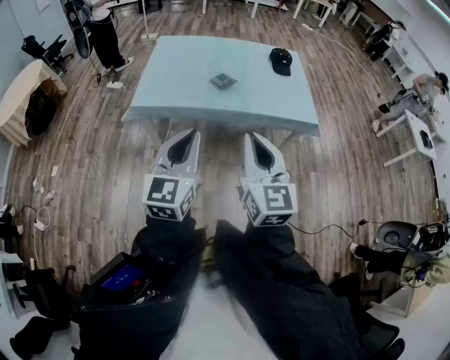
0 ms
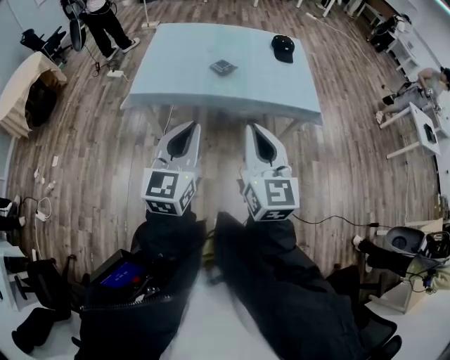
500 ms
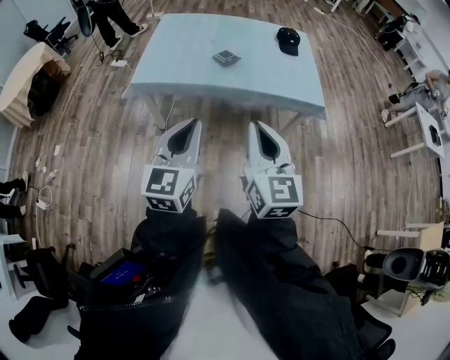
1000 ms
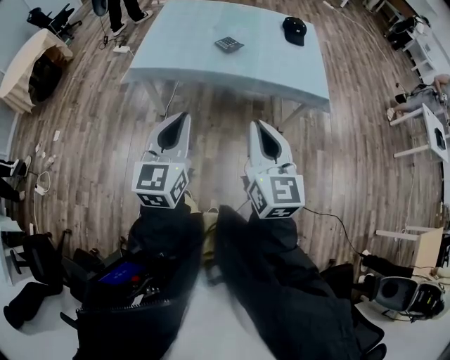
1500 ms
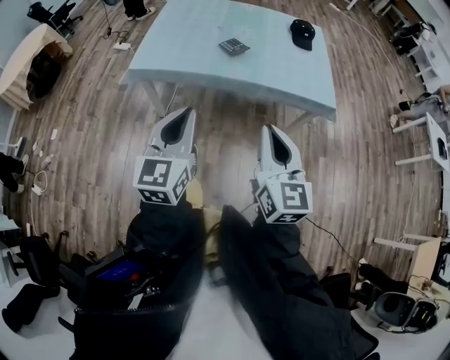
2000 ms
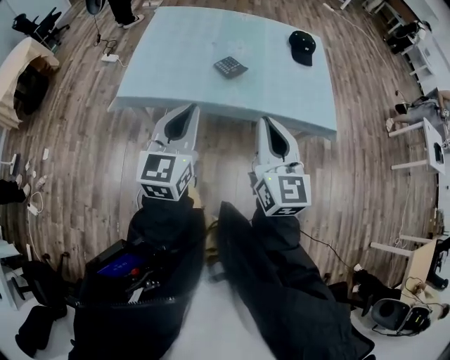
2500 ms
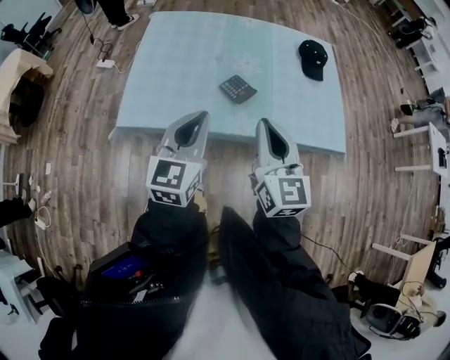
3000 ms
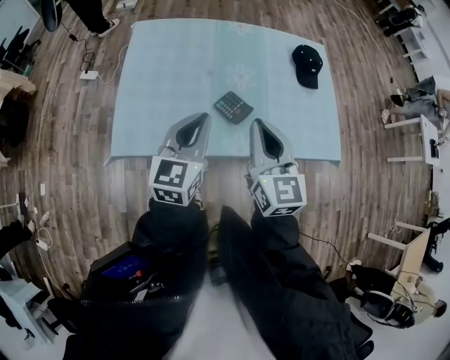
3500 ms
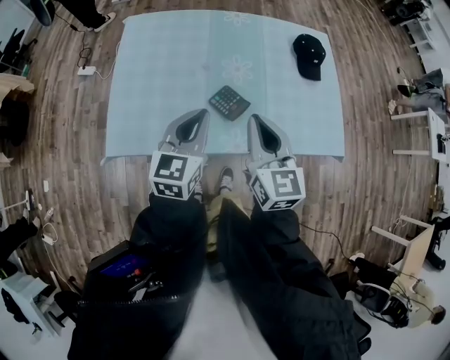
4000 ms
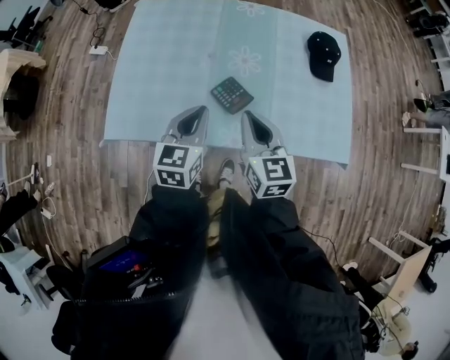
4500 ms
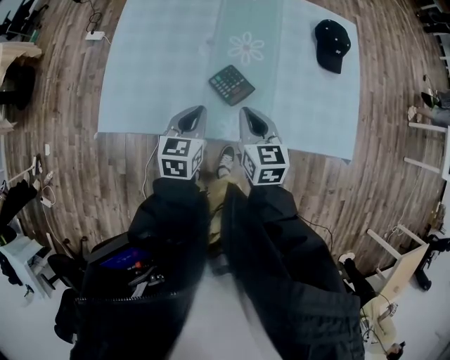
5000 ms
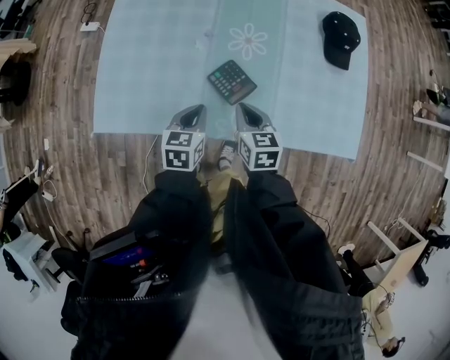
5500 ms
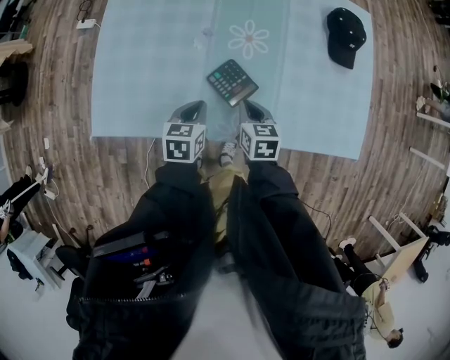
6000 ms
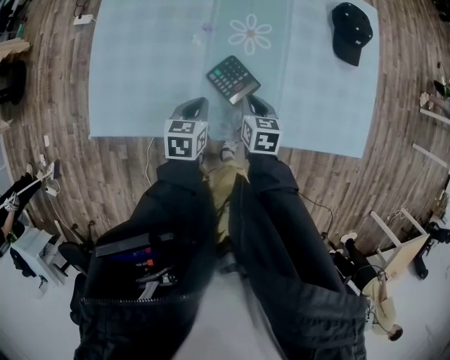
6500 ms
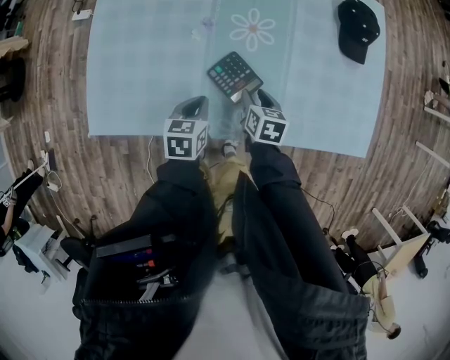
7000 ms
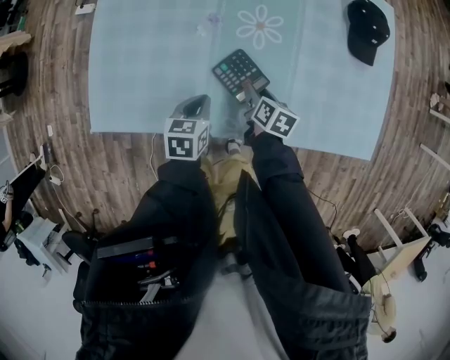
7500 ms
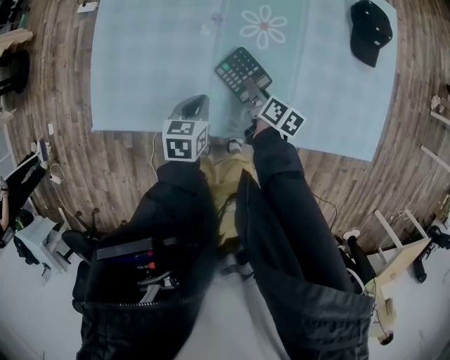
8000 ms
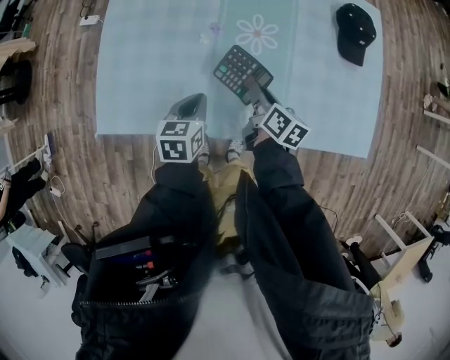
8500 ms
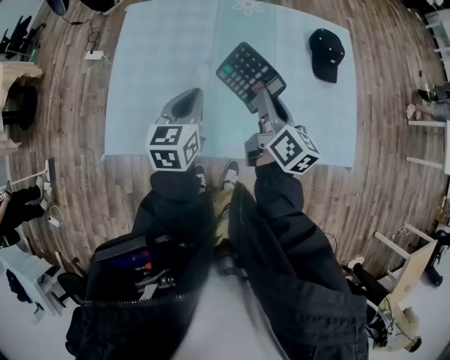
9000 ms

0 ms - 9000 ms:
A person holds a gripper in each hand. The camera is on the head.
0 ms - 2000 ms: The left gripper is displaced downward by roughly 5 cm; the right gripper heads downward and to the right, covering roughly 10 cm.
2000 ms - 4500 ms: The two grippers travel together, forward, some 50 cm. The left gripper changes its angle by roughly 20 degrees.
4500 ms - 7000 ms: Both grippers move downward, about 25 cm. The left gripper turns by approximately 30 degrees. The right gripper angles its fingers downward, by about 30 degrees, and opens up.
7000 ms - 9000 ms: The grippers both shift upward by roughly 25 cm. The right gripper tips its fingers upward by approximately 40 degrees, and closes, while the left gripper rotates approximately 30 degrees.

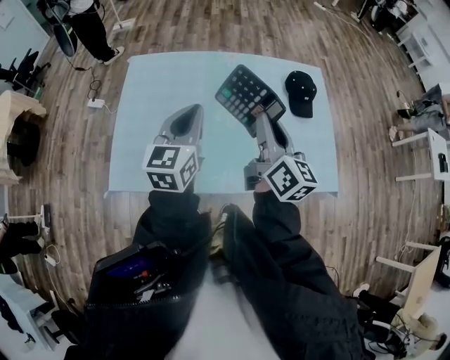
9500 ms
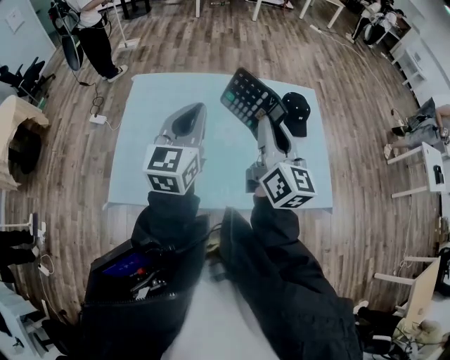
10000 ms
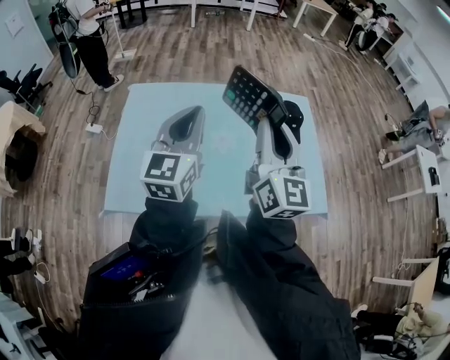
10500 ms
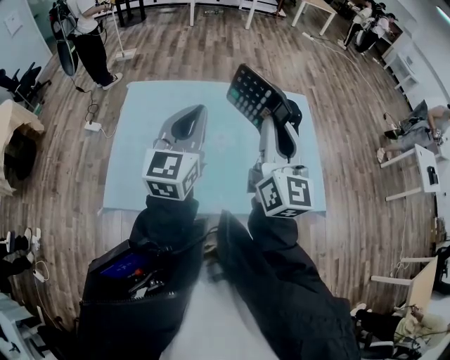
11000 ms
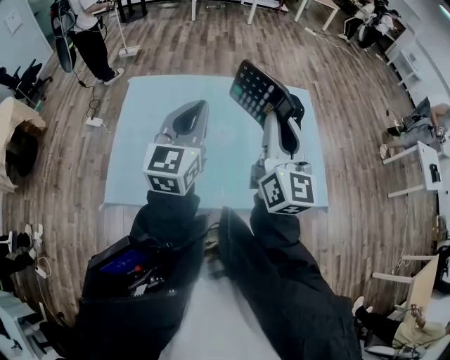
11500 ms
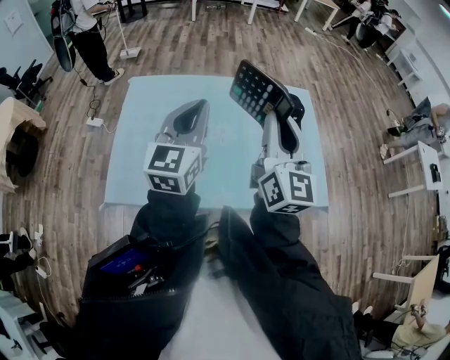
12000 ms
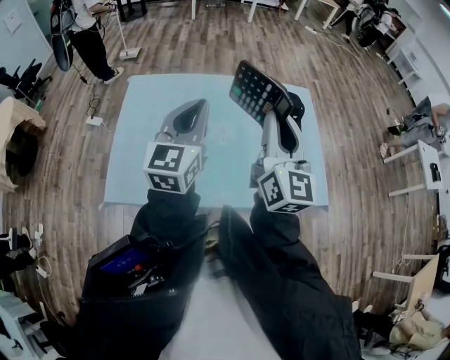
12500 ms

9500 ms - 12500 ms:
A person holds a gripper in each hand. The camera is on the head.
9500 ms - 11000 ms: Both grippers travel together upward, some 10 cm. The right gripper changes its angle by approximately 30 degrees.
11000 ms - 12500 ms: Both grippers stay put.

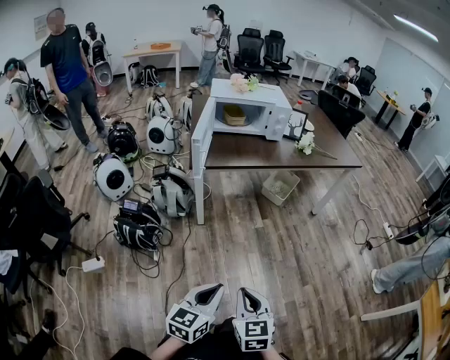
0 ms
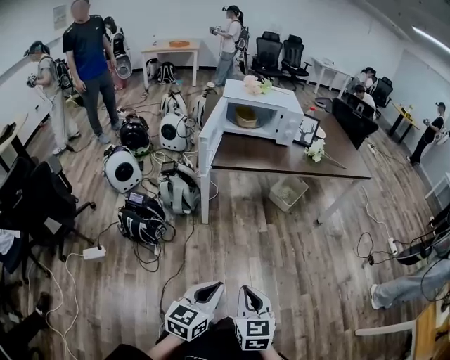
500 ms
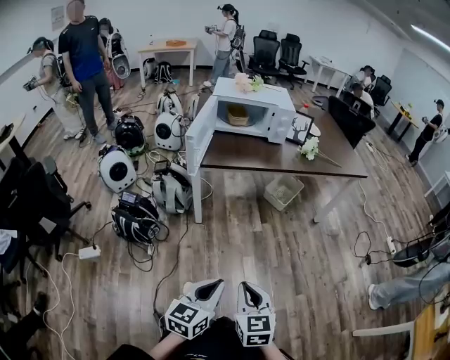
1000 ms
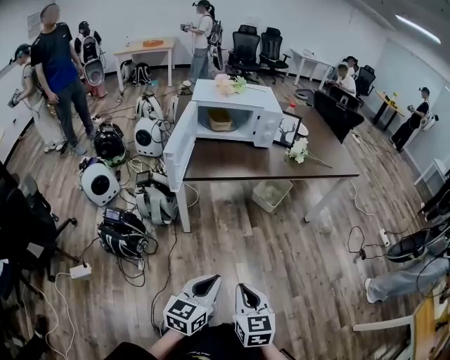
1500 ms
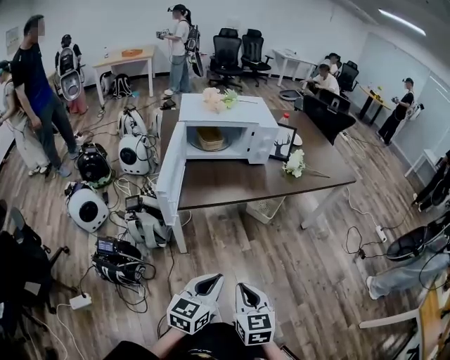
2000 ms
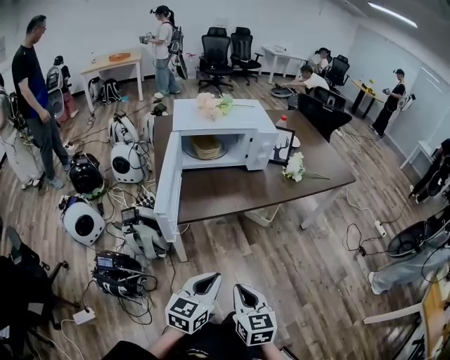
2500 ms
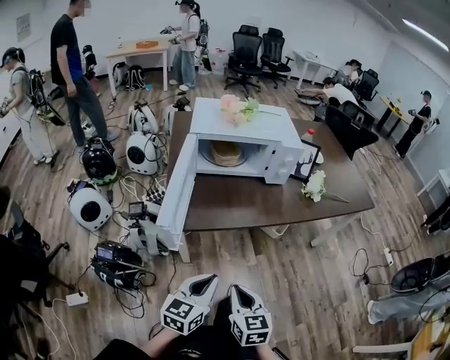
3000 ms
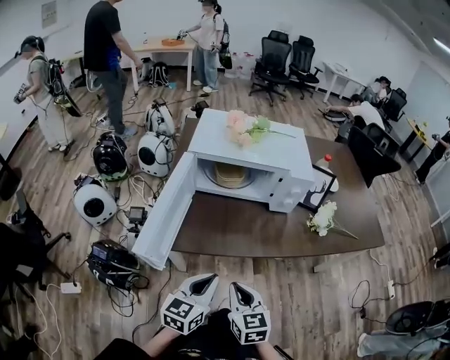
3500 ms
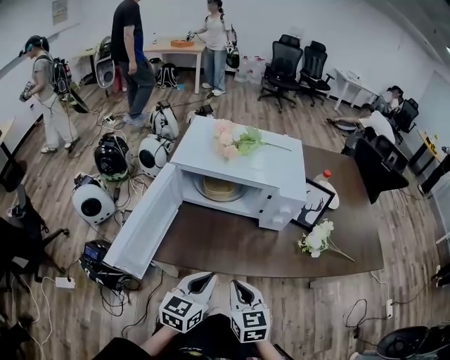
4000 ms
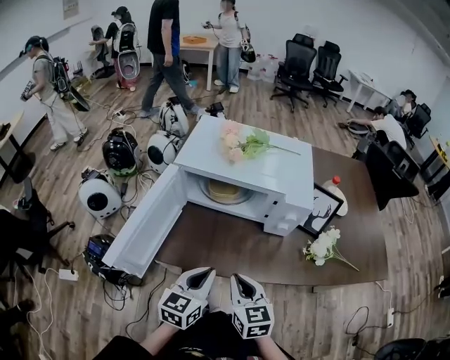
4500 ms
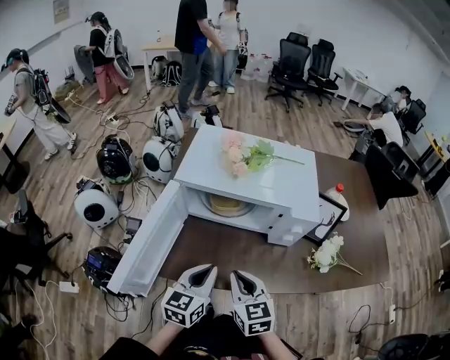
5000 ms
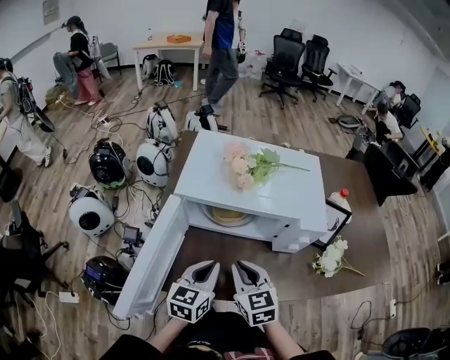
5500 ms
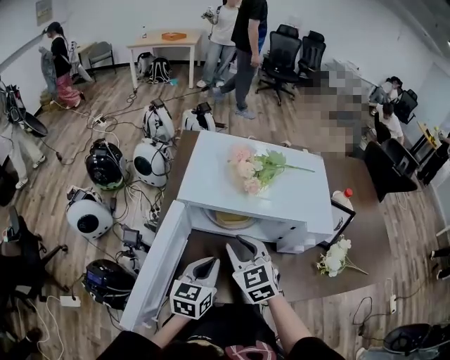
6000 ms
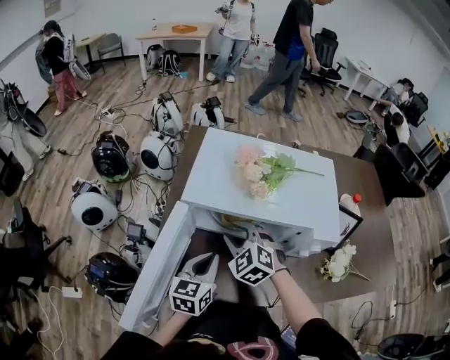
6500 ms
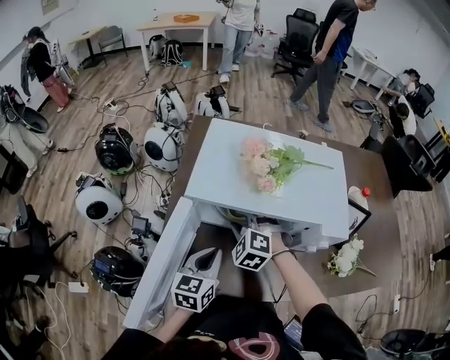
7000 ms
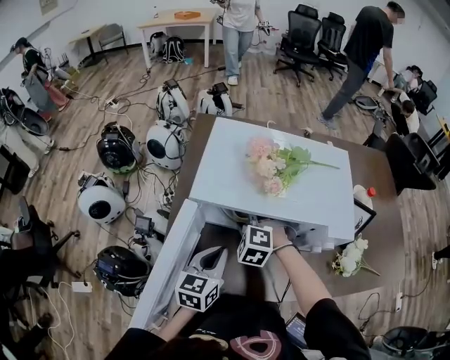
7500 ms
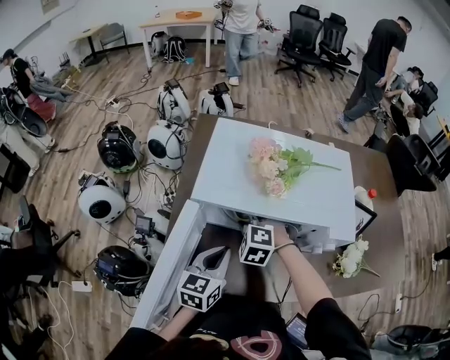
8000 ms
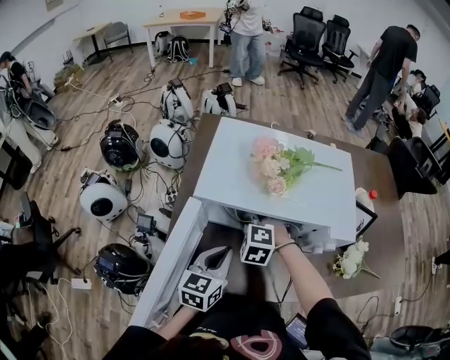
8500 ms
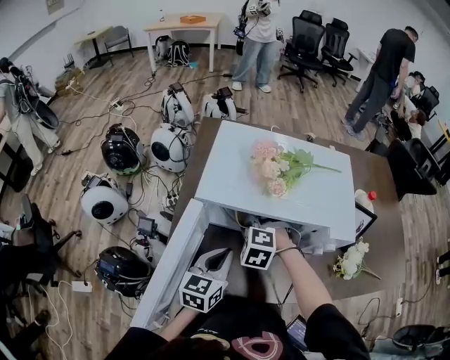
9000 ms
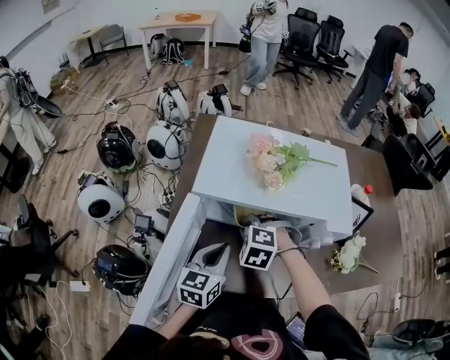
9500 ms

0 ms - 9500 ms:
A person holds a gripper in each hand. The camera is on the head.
0 ms - 2000 ms: Both grippers move forward, some 25 cm.
2000 ms - 4000 ms: The grippers both shift forward by roughly 35 cm. The right gripper turns by roughly 20 degrees.
4000 ms - 5500 ms: The two grippers go roughly 15 cm forward.
5500 ms - 7500 ms: The right gripper travels forward and downward by roughly 15 cm, twists about 60 degrees counterclockwise, seen from behind, and opens its fingers. Meanwhile the left gripper heads forward, covering approximately 5 cm.
7500 ms - 9500 ms: The right gripper closes.

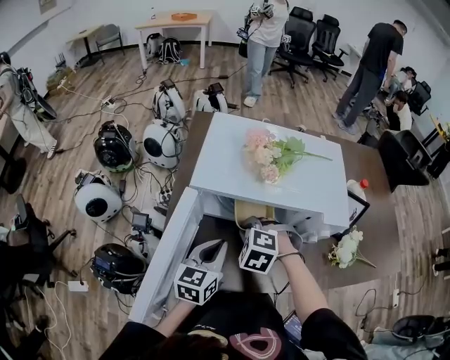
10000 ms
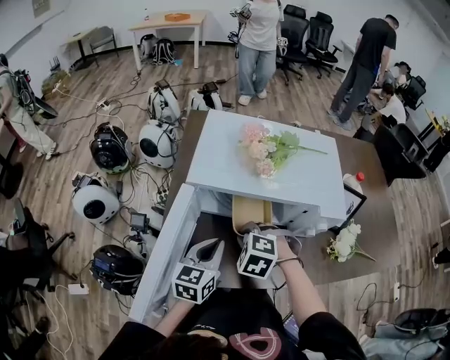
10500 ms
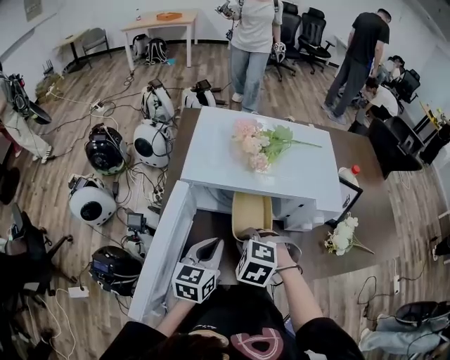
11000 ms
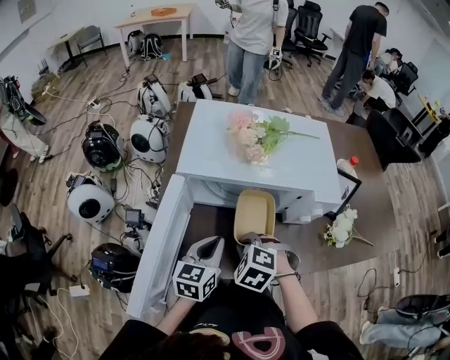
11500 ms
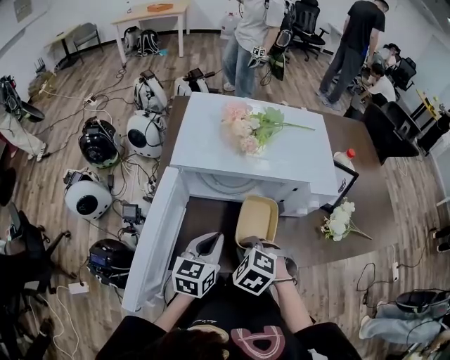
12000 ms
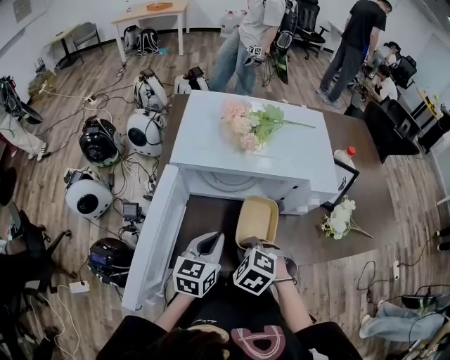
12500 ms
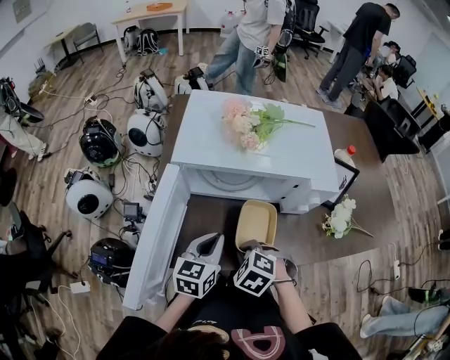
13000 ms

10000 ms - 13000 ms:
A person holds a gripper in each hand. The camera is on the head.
10000 ms - 11500 ms: The right gripper travels backward by about 10 cm.
11500 ms - 13000 ms: The right gripper shifts by about 5 cm.

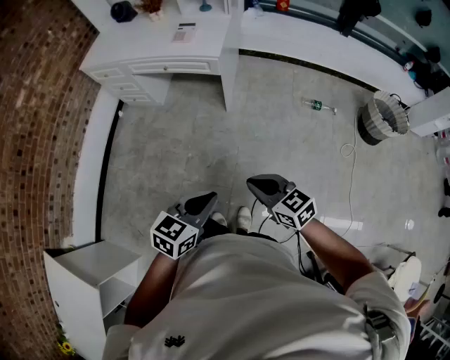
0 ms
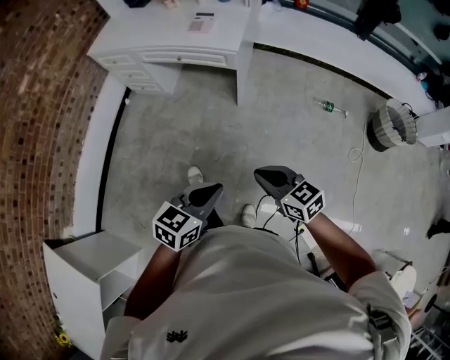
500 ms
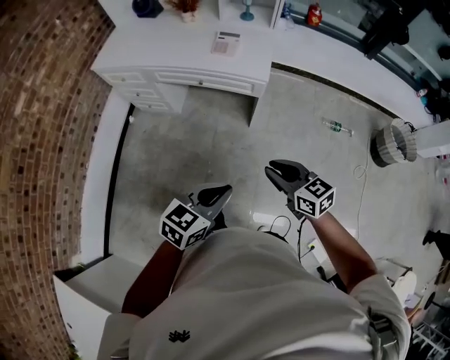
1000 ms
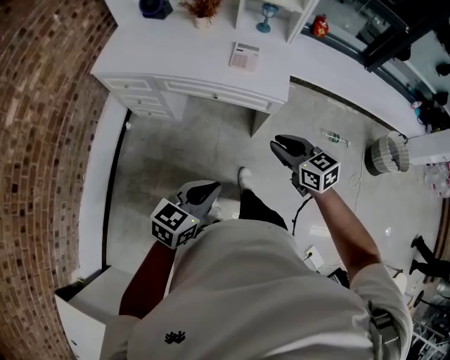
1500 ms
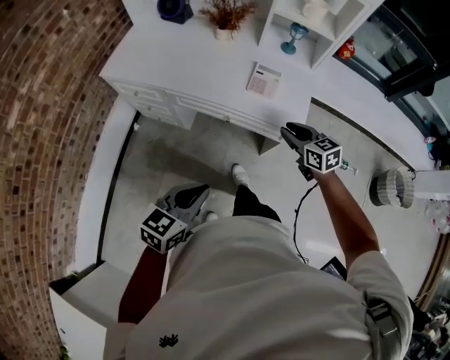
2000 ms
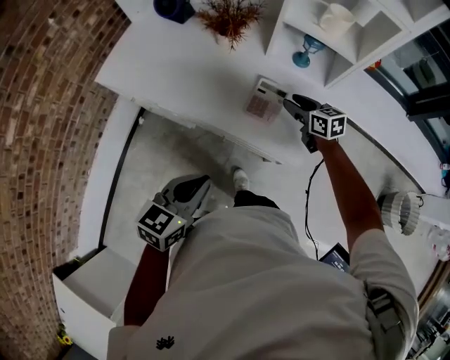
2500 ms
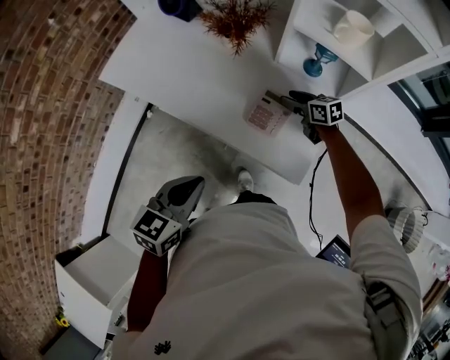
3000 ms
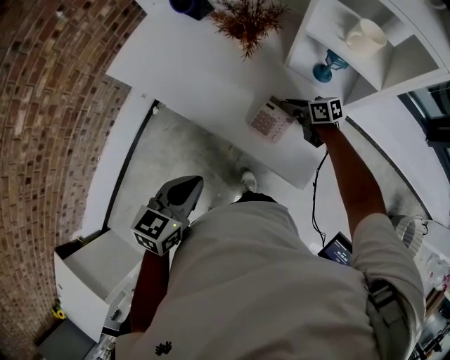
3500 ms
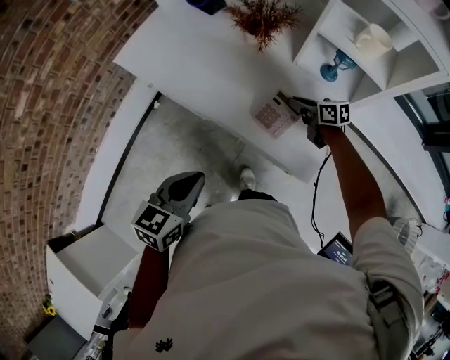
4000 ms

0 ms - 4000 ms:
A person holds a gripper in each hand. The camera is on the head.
0 ms - 2000 ms: The two grippers travel together, forward and to the left, about 60 cm. The right gripper opens up.
2000 ms - 4000 ms: The right gripper ends up about 30 cm from where it was, swivels about 30 degrees, and opens, then closes again; the left gripper shifts by roughly 20 cm, and rotates roughly 20 degrees.
